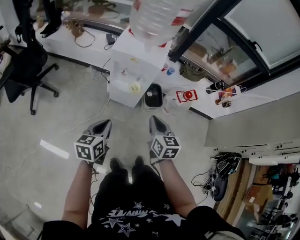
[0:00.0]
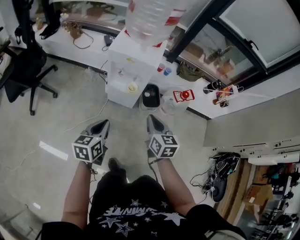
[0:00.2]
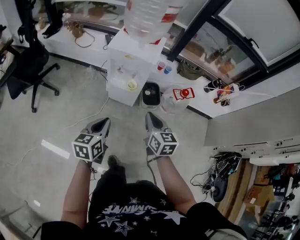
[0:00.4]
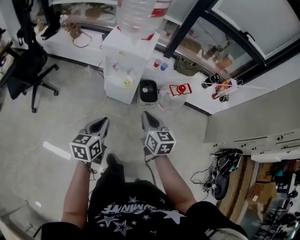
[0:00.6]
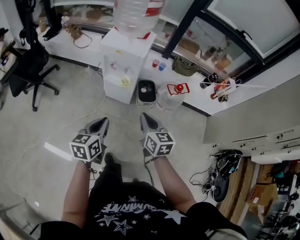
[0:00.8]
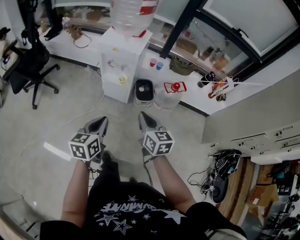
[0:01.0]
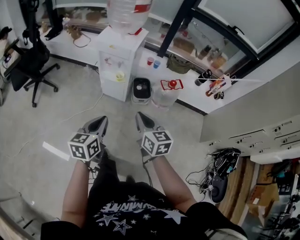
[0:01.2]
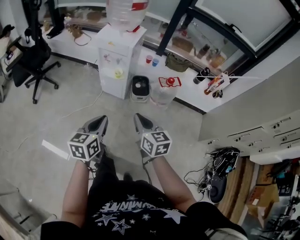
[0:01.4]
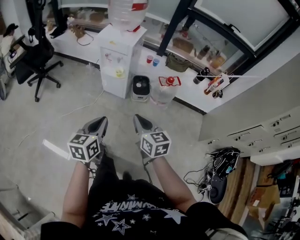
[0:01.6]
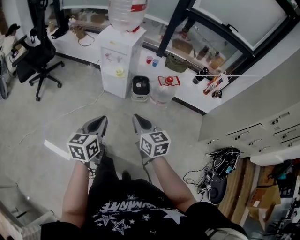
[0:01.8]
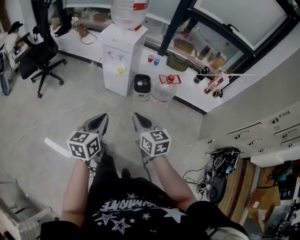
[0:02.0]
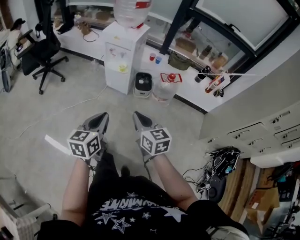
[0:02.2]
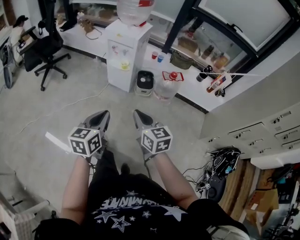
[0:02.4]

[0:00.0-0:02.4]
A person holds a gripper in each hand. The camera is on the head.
0:00.0 to 0:01.2: The left gripper is displaced to the right and backward by roughly 25 cm. Meanwhile the right gripper shifts approximately 20 cm backward and to the right.
0:01.2 to 0:02.4: Both grippers travel together backward, about 15 cm.

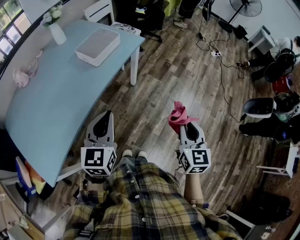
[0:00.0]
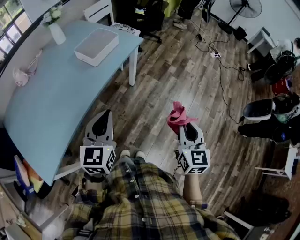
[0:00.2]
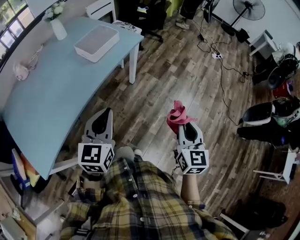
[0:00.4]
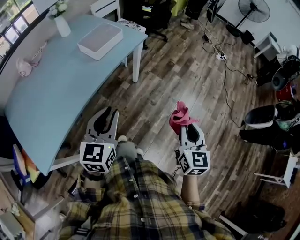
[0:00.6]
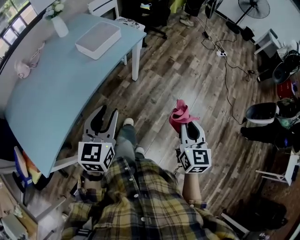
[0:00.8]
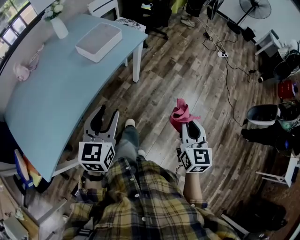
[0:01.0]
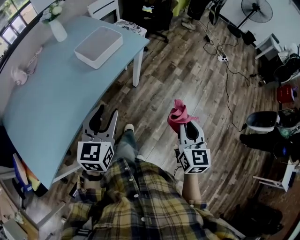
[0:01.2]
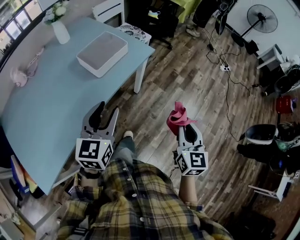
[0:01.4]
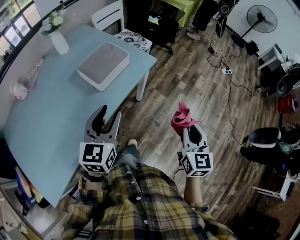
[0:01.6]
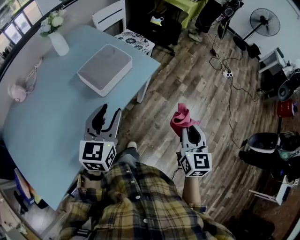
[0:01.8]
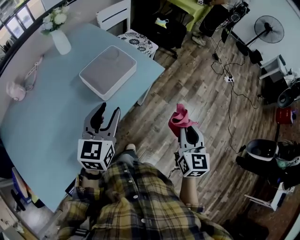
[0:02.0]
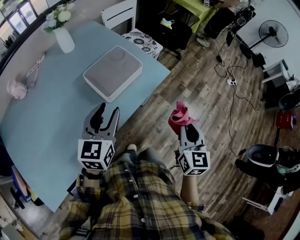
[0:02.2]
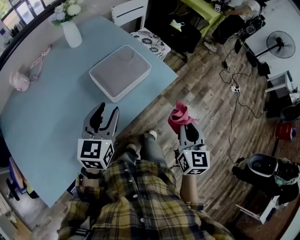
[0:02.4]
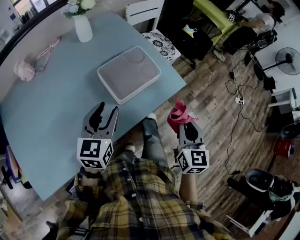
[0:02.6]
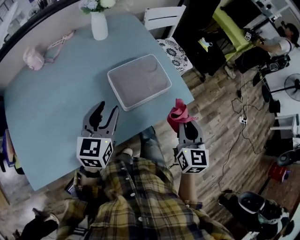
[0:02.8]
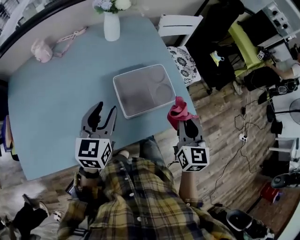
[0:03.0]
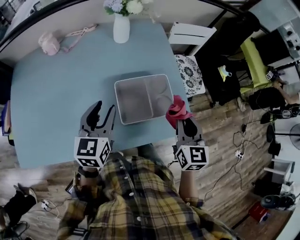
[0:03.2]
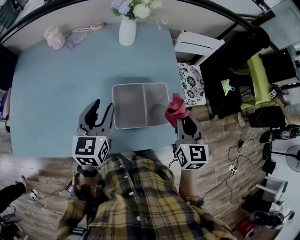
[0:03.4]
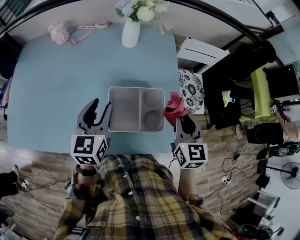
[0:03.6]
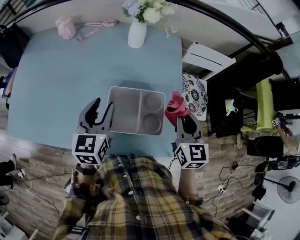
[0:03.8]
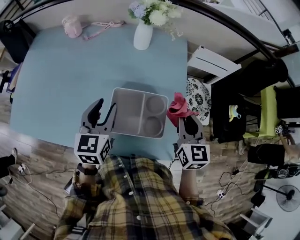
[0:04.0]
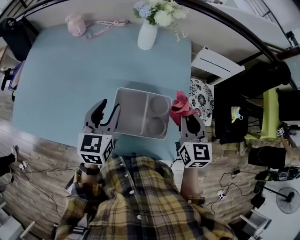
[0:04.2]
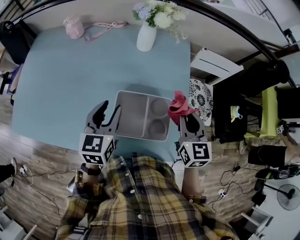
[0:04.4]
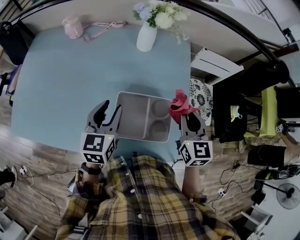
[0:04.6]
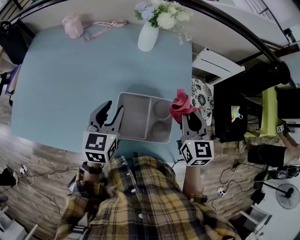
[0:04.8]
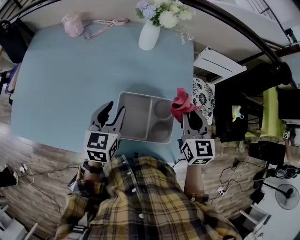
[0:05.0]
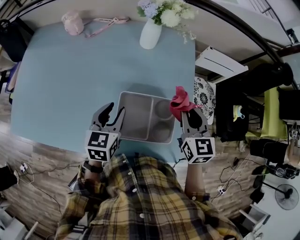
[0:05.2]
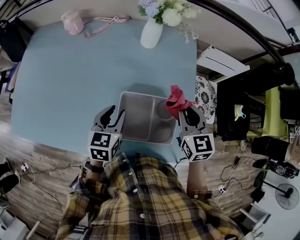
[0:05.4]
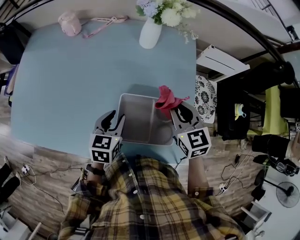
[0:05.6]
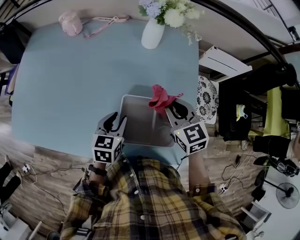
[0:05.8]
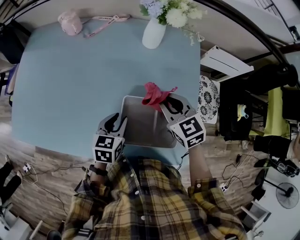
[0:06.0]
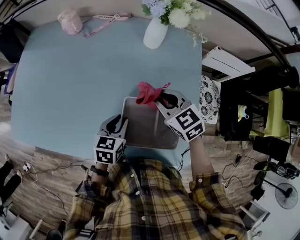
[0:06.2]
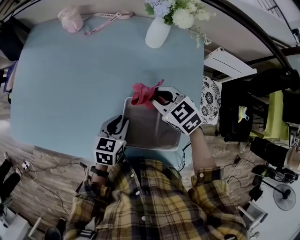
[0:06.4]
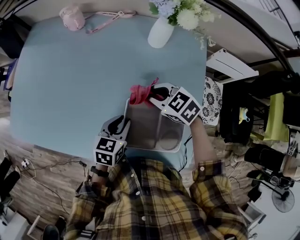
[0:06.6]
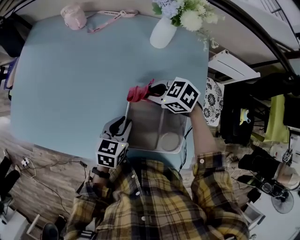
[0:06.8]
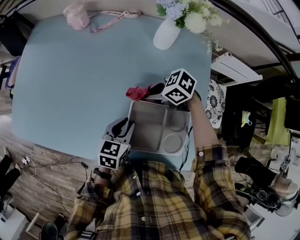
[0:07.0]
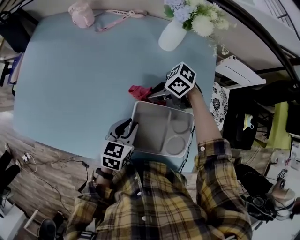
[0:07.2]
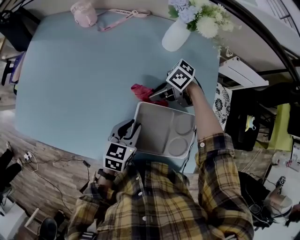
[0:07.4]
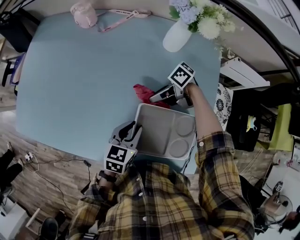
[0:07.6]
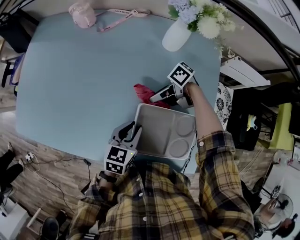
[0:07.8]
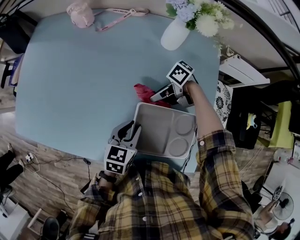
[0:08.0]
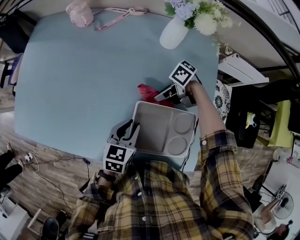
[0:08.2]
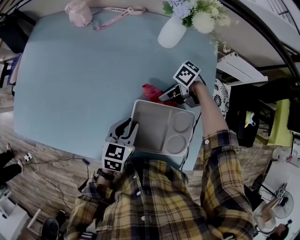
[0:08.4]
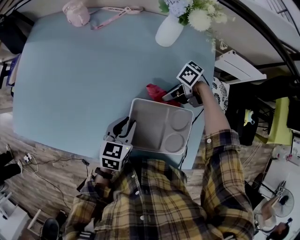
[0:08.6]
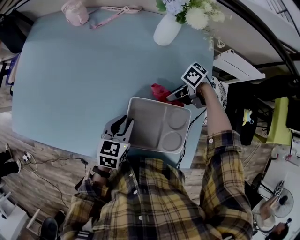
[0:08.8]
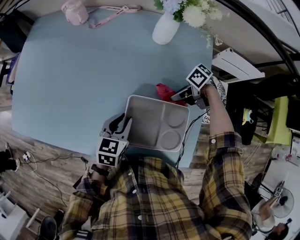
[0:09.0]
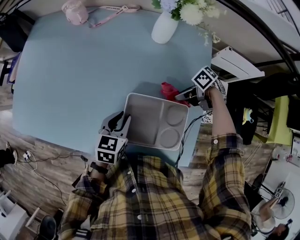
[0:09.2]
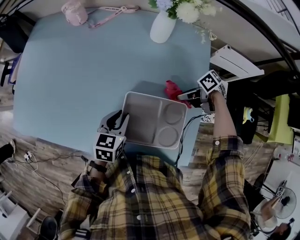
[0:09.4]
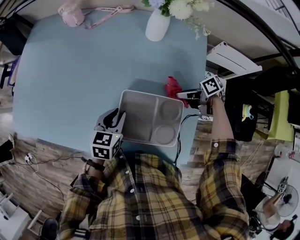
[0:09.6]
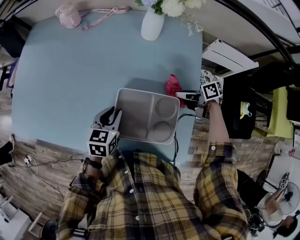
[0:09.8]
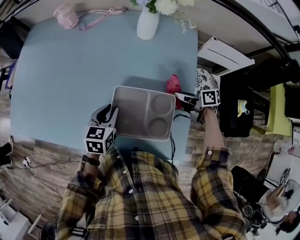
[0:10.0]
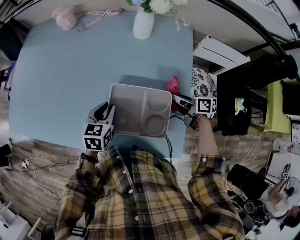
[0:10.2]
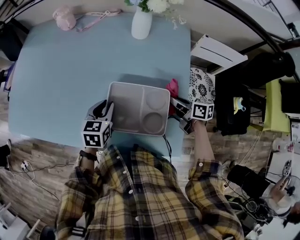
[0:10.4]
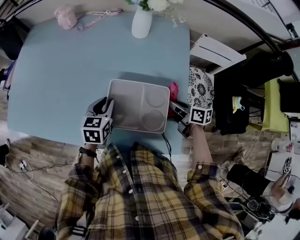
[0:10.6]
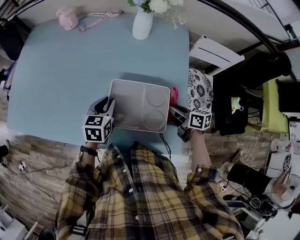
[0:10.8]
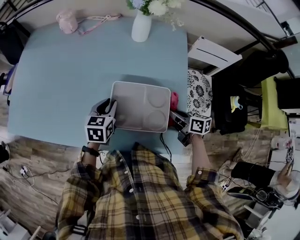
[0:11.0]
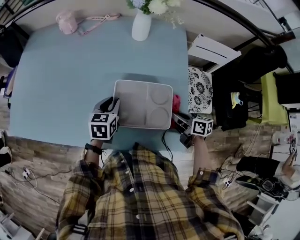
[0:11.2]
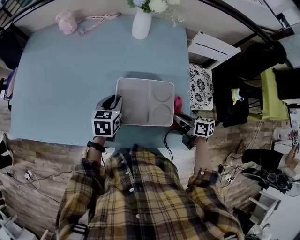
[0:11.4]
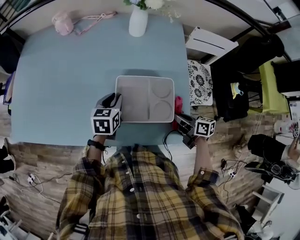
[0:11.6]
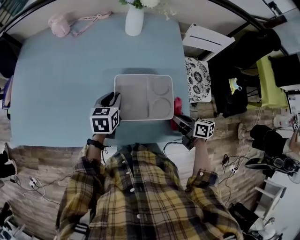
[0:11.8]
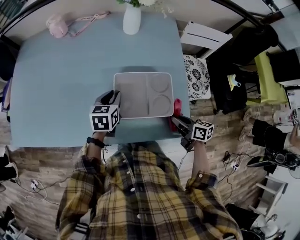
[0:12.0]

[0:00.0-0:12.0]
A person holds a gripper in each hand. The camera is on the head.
0:00.0 to 0:01.6: The grippers both shift forward by approximately 20 cm. The left gripper opens.
0:01.6 to 0:03.0: The right gripper shifts by about 35 cm, and swivels about 30 degrees, while the left gripper moves some 25 cm, and changes its angle by approximately 30 degrees.
0:03.0 to 0:04.4: The right gripper ends up some 20 cm from where it was, and rotates some 30 degrees. Meanwhile the left gripper changes place by approximately 10 cm, and turns by roughly 30 degrees.
0:04.4 to 0:06.0: The right gripper goes approximately 15 cm to the left, forward and downward, and rotates about 30 degrees; the left gripper shifts approximately 15 cm downward, and rotates approximately 20 degrees.
0:06.0 to 0:07.6: The right gripper heads downward, covering roughly 15 cm, and rotates approximately 80 degrees.
0:07.6 to 0:09.0: The right gripper ends up about 15 cm from where it was.
0:09.0 to 0:10.4: The right gripper shifts by approximately 10 cm, and swivels about 60 degrees.
0:10.4 to 0:12.0: The right gripper goes roughly 15 cm backward.

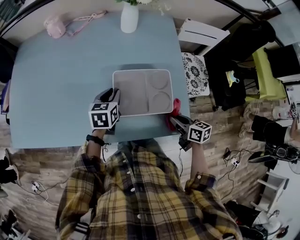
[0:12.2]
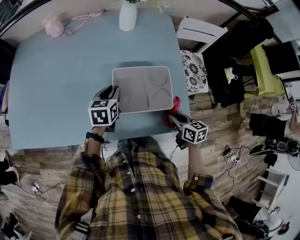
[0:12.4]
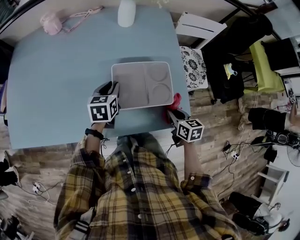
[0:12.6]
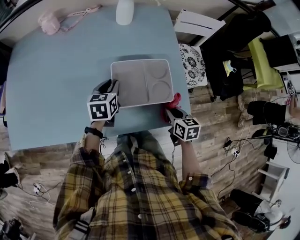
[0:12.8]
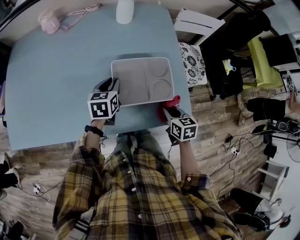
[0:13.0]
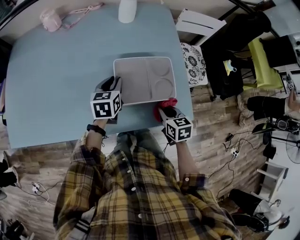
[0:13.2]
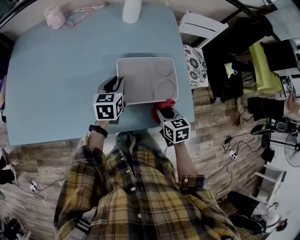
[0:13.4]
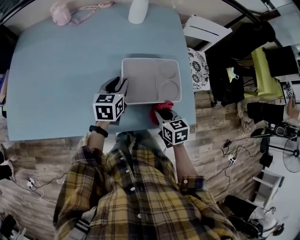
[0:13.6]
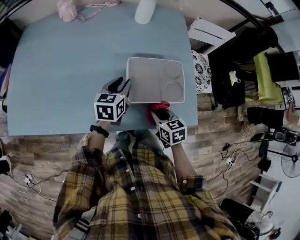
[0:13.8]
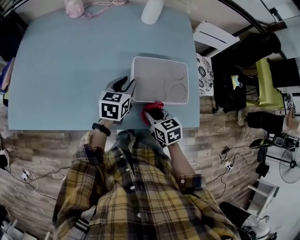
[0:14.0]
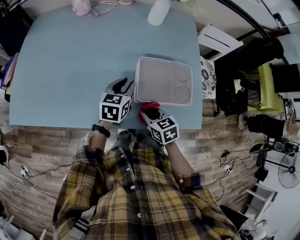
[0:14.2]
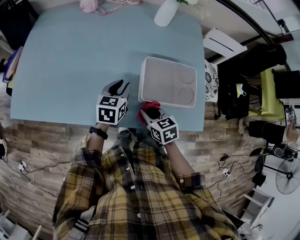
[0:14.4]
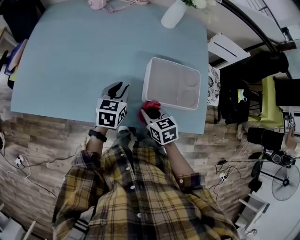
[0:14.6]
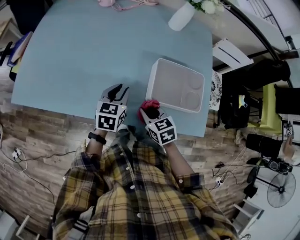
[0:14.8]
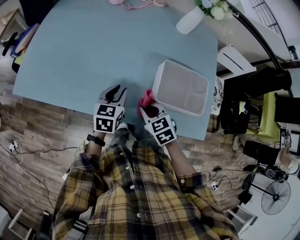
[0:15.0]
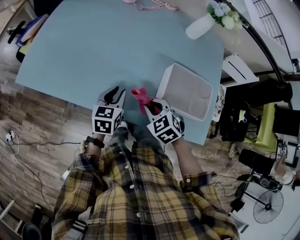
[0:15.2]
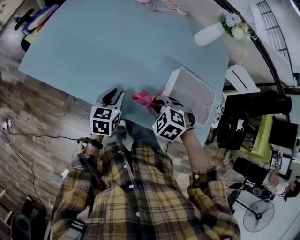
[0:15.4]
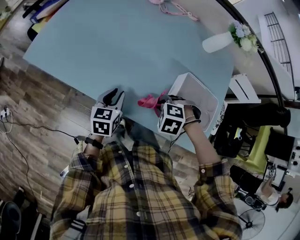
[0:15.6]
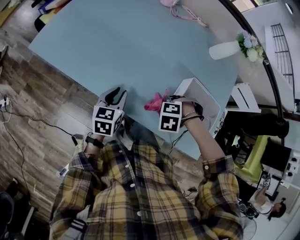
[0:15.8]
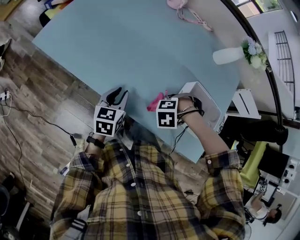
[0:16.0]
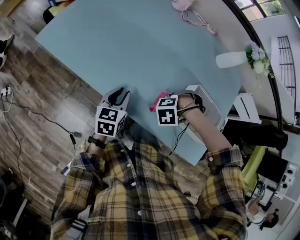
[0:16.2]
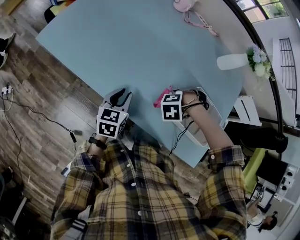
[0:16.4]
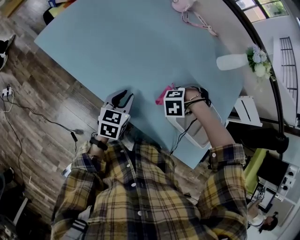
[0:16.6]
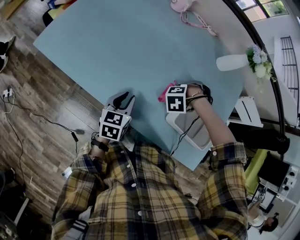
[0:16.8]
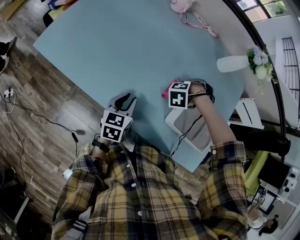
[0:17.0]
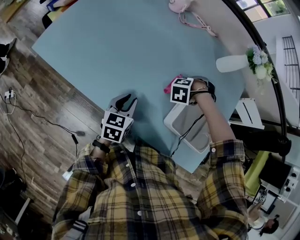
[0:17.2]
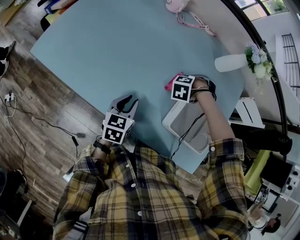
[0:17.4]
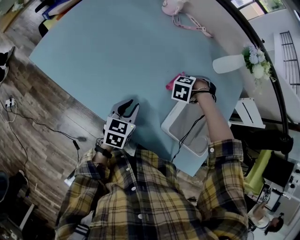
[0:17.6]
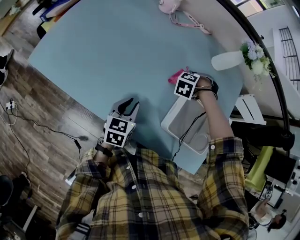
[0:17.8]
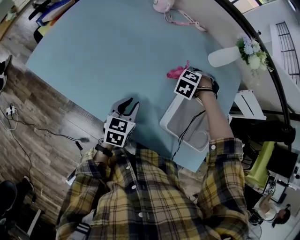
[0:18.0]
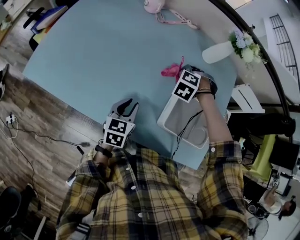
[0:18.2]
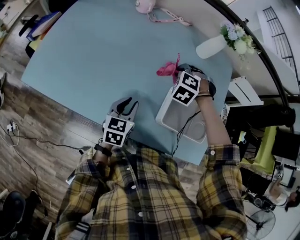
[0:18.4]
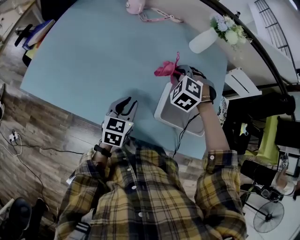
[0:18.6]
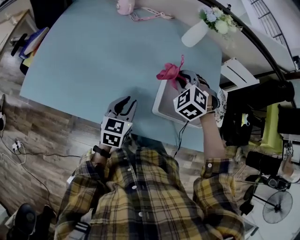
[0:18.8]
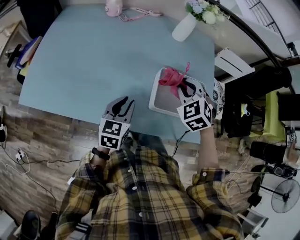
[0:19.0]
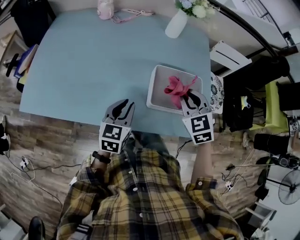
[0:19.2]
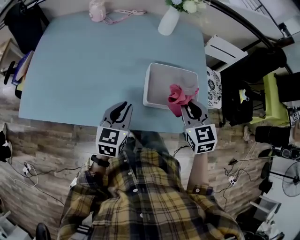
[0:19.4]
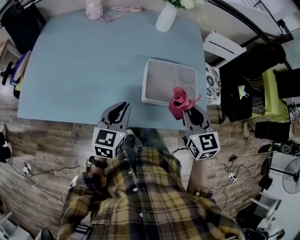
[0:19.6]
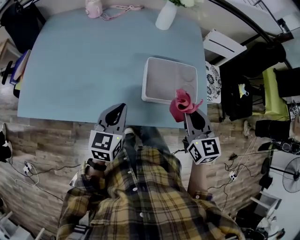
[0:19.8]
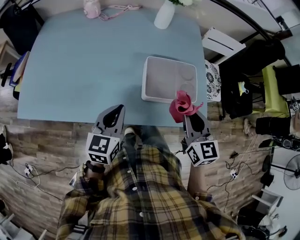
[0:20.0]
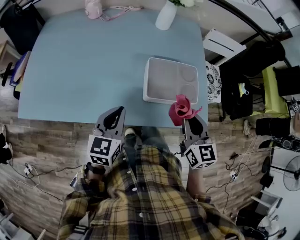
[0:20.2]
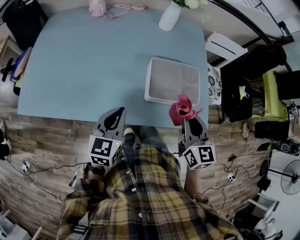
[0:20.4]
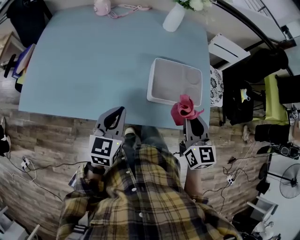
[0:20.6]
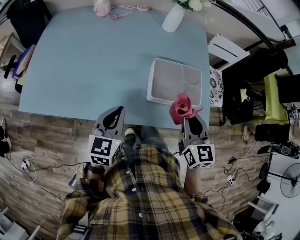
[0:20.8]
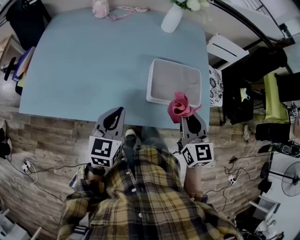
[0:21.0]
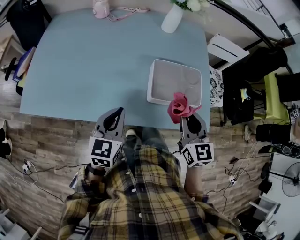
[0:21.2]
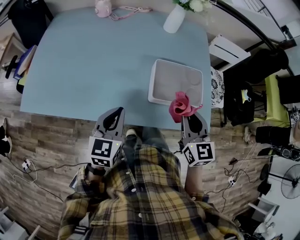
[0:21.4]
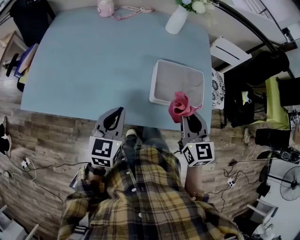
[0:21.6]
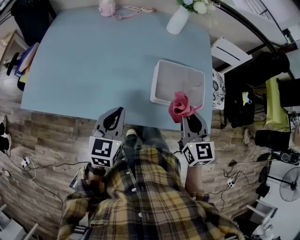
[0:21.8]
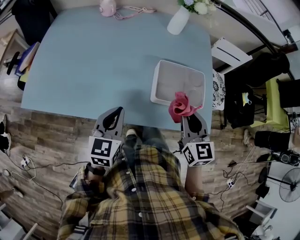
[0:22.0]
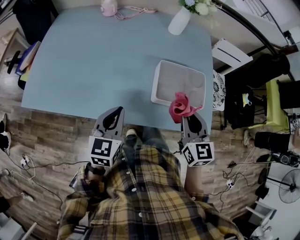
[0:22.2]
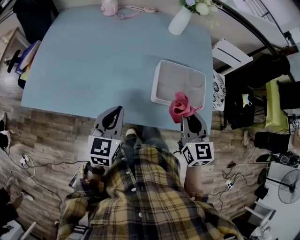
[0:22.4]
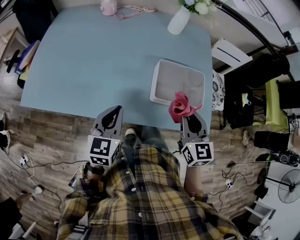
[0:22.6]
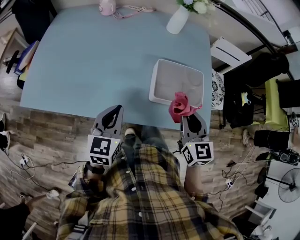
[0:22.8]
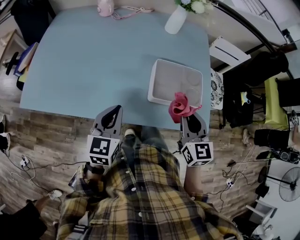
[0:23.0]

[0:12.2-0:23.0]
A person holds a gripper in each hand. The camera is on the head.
0:12.2 to 0:13.8: The right gripper goes some 15 cm to the left, and turns by approximately 20 degrees.
0:13.8 to 0:15.2: The two grippers go roughly 15 cm to the left. The right gripper rolls counterclockwise, seen from behind, by roughly 50 degrees.
0:15.2 to 0:16.8: The right gripper moves roughly 15 cm, and turns by roughly 80 degrees.
0:16.8 to 0:18.4: The left gripper ends up some 10 cm from where it was, while the right gripper ends up approximately 15 cm from where it was, and rotates roughly 50 degrees.
0:18.4 to 0:20.0: The left gripper is displaced upward, backward and to the right by approximately 15 cm, and closes its fingers. The right gripper goes roughly 35 cm backward, to the right and upward, and rolls clockwise, seen from behind, by roughly 80 degrees.
0:20.0 to 0:23.0: The grippers make only small movements.
